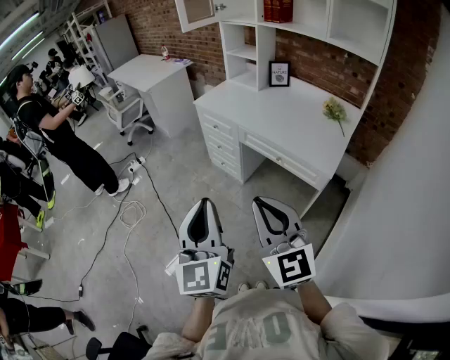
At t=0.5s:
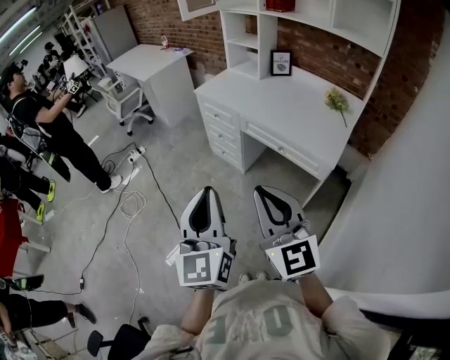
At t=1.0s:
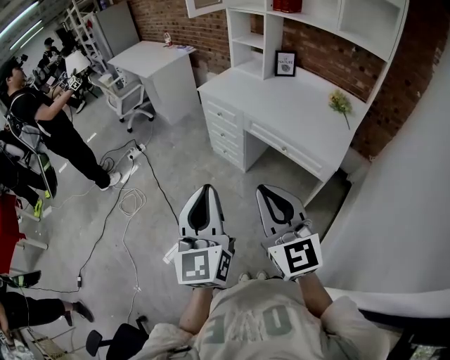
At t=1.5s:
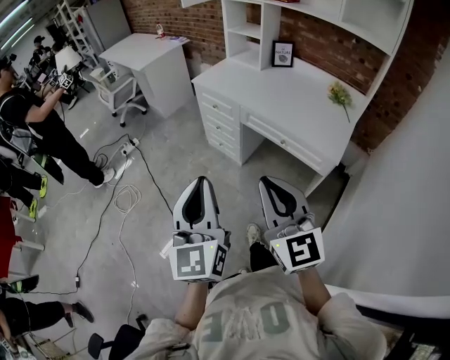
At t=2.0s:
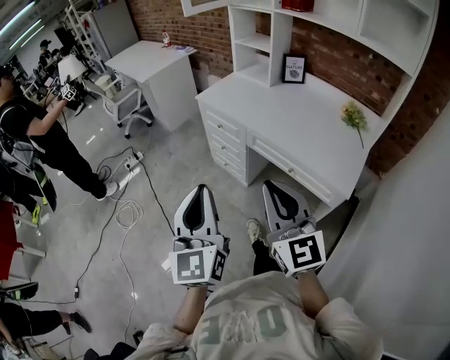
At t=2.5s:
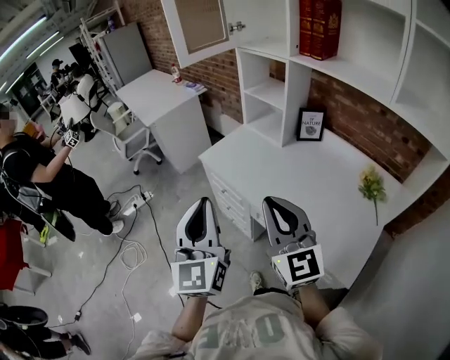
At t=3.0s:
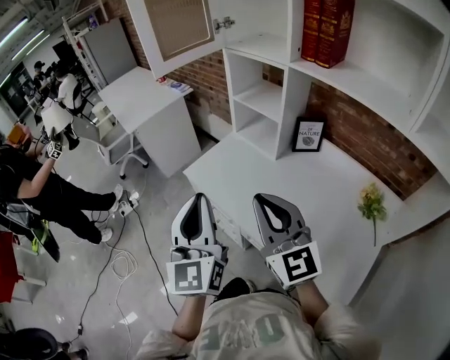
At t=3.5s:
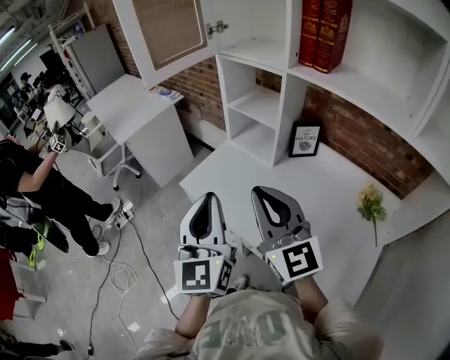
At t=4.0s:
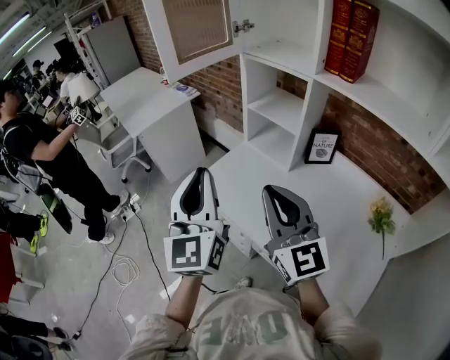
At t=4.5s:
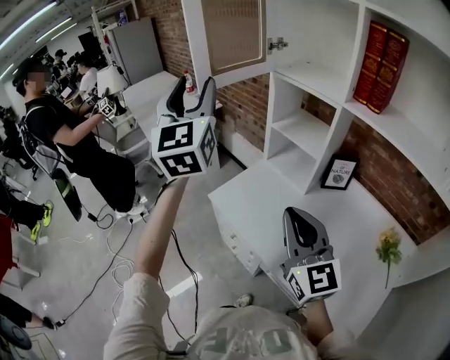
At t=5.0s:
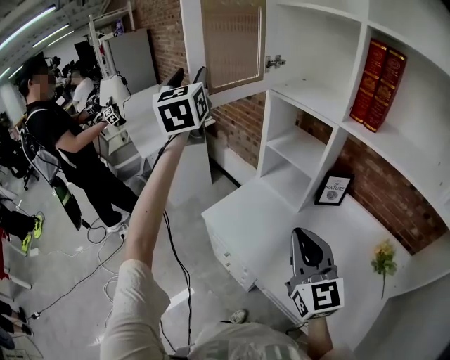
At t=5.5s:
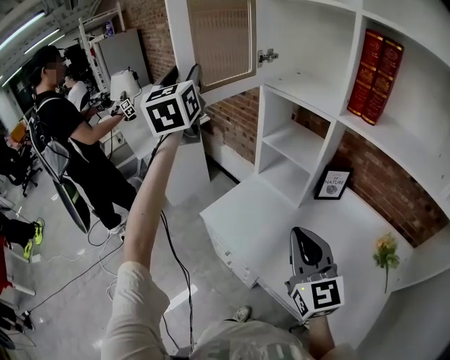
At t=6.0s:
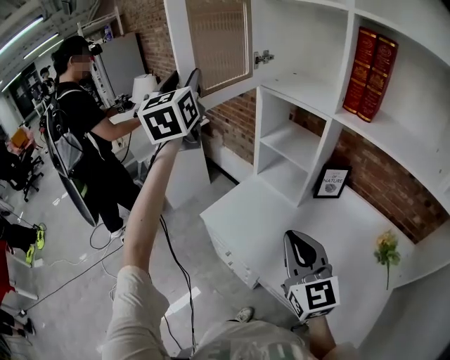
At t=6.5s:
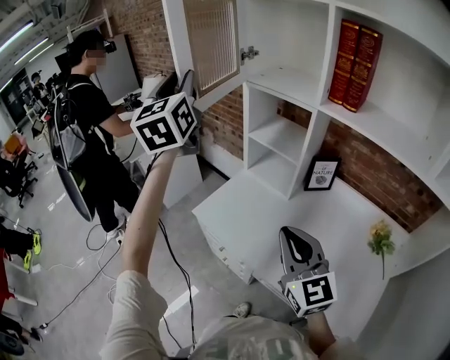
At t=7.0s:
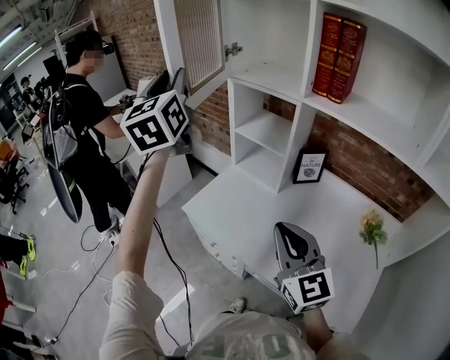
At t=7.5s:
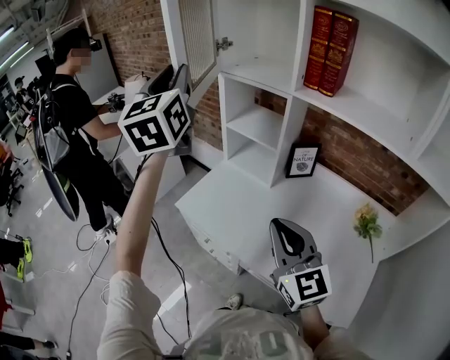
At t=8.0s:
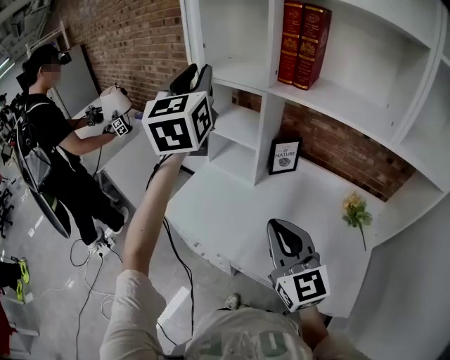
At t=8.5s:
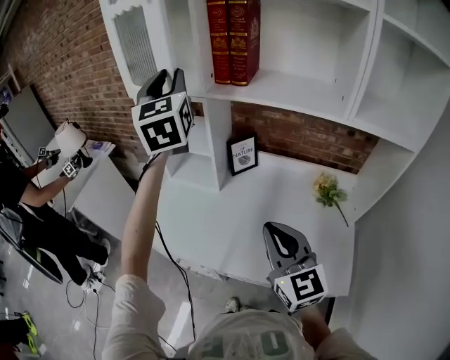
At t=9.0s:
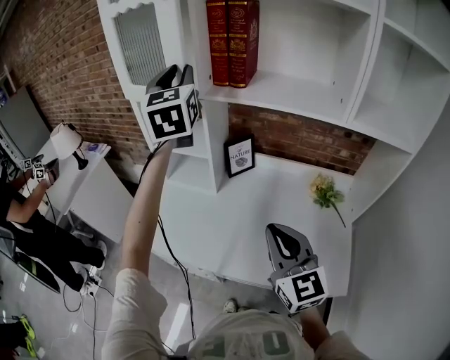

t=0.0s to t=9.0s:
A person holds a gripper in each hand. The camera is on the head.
t=0.0s to t=2.0s: The two grippers go approximately 15 cm forward.
t=2.0s to t=4.5s: Both grippers are carried forward, some 60 cm. The left gripper opens.
t=4.5s to t=7.0s: The left gripper travels forward by some 5 cm.
t=7.0s to t=9.0s: The left gripper heads to the right, covering some 25 cm, and swivels about 20 degrees, while the right gripper heads to the right, covering approximately 10 cm, and swivels approximately 20 degrees.

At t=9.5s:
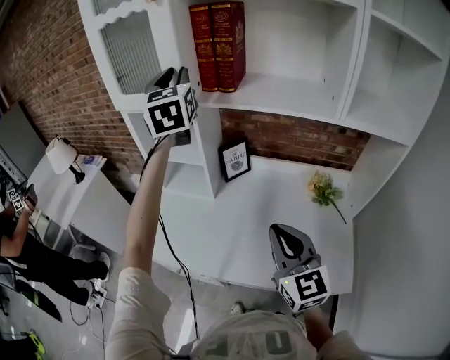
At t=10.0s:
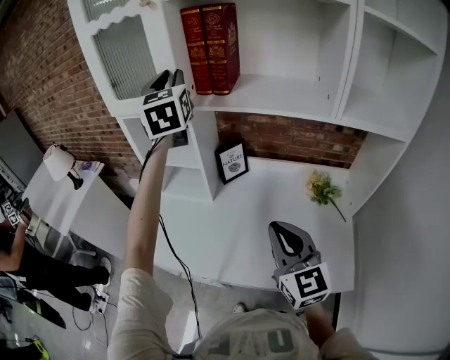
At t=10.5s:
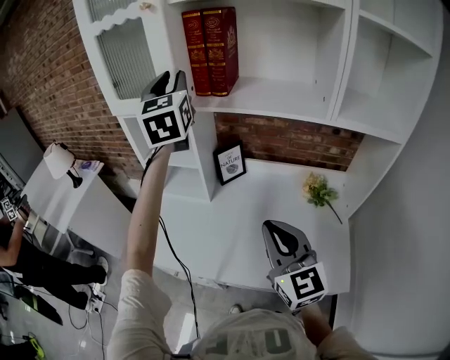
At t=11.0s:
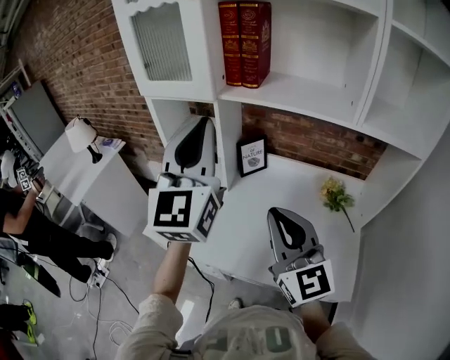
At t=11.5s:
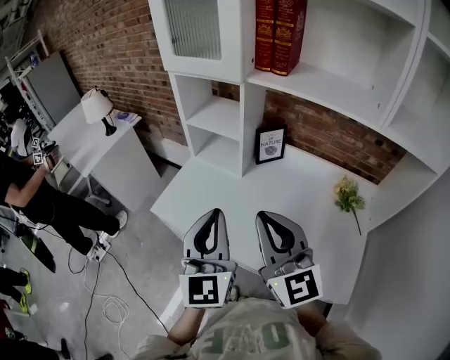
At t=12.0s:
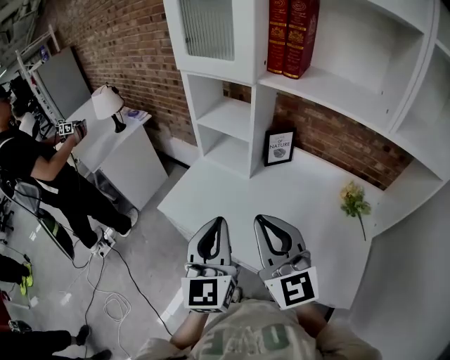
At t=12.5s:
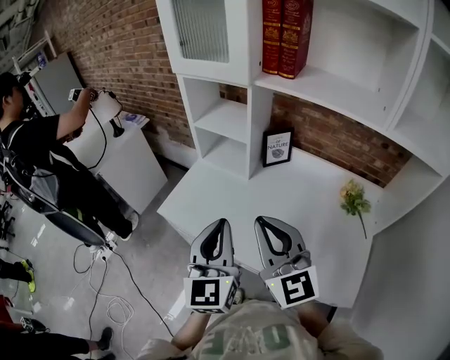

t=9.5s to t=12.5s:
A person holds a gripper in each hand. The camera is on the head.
t=9.5s to t=11.0s: The right gripper is displaced upward by roughly 5 cm. Meanwhile the left gripper travels backward by roughly 20 cm, and closes up.
t=11.0s to t=12.5s: The left gripper moves downward and backward, approximately 25 cm, and swivels some 30 degrees. The right gripper is displaced to the left by about 10 cm.

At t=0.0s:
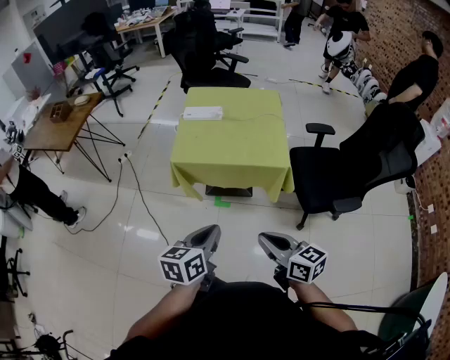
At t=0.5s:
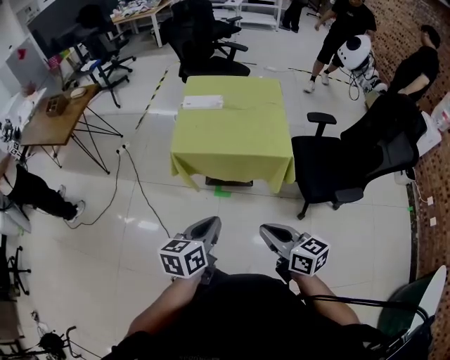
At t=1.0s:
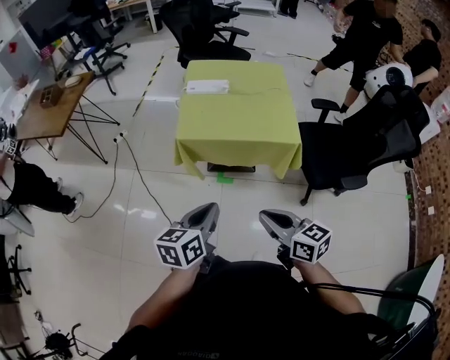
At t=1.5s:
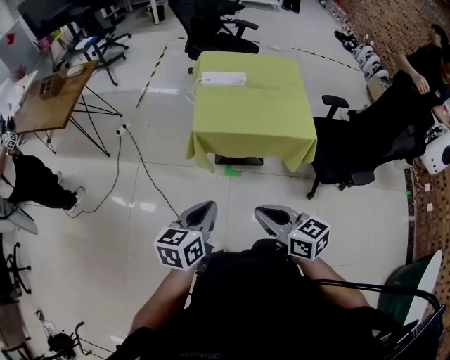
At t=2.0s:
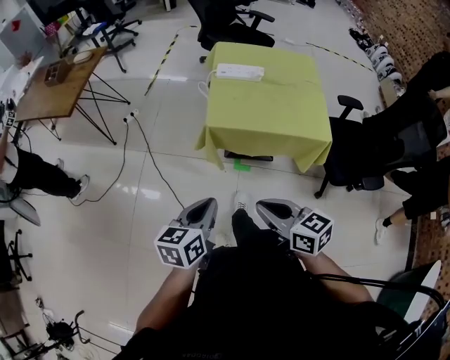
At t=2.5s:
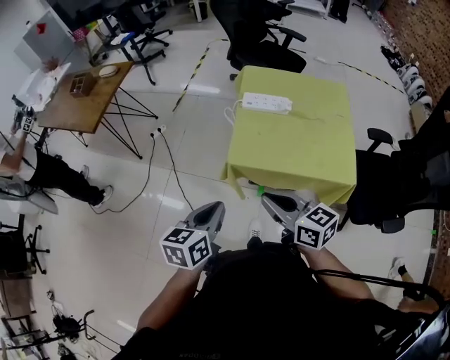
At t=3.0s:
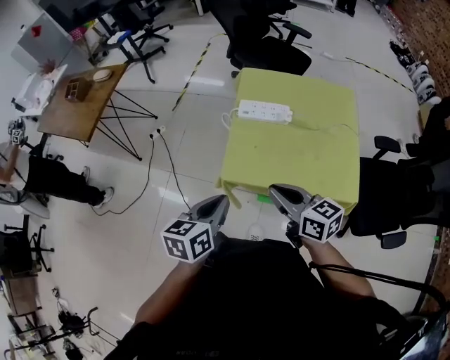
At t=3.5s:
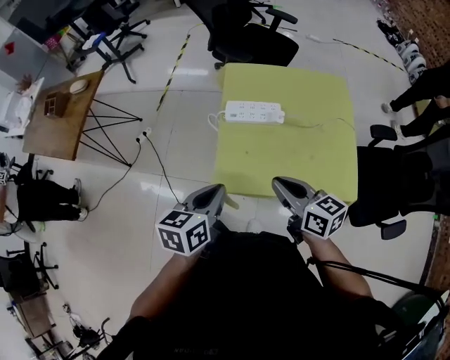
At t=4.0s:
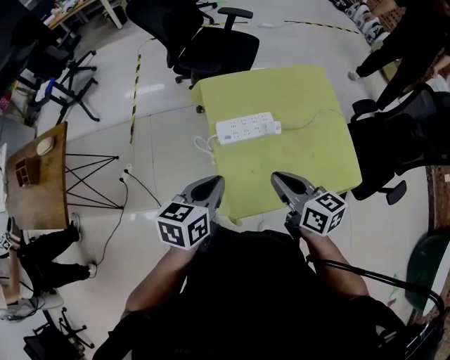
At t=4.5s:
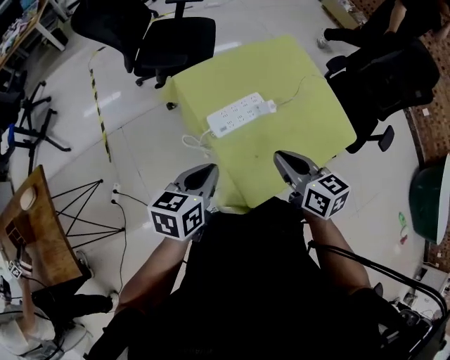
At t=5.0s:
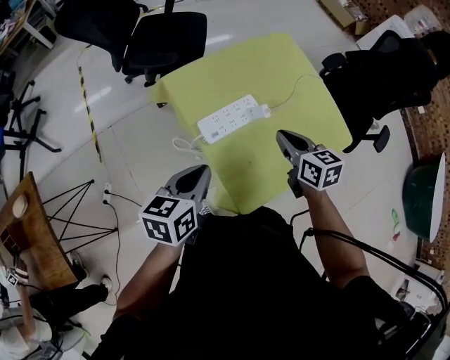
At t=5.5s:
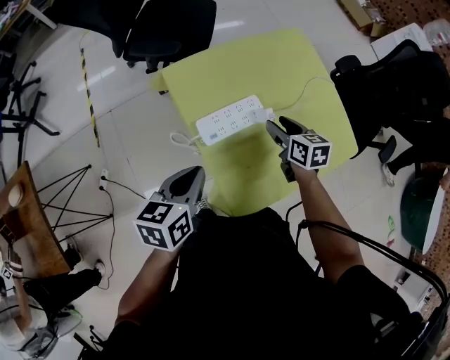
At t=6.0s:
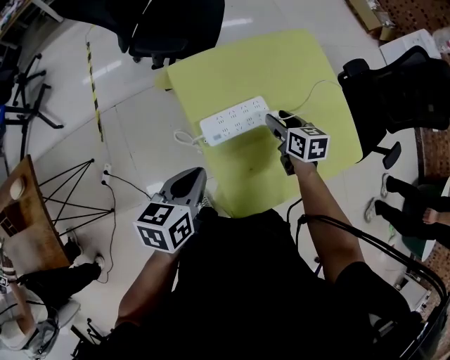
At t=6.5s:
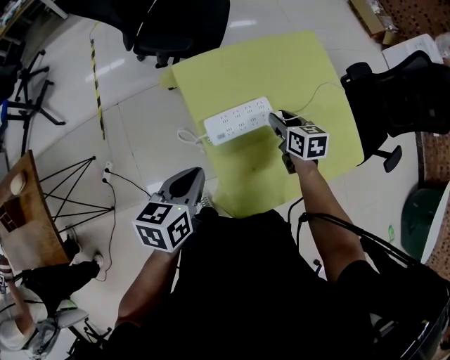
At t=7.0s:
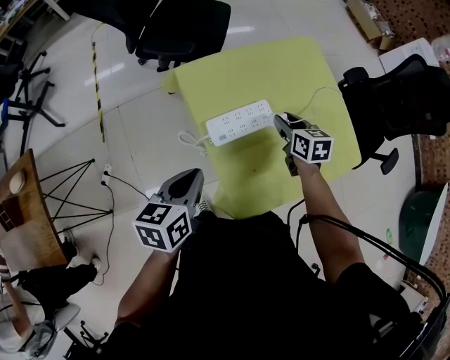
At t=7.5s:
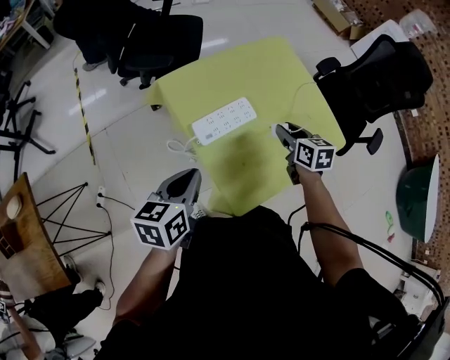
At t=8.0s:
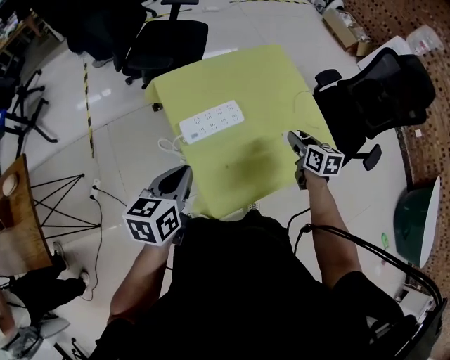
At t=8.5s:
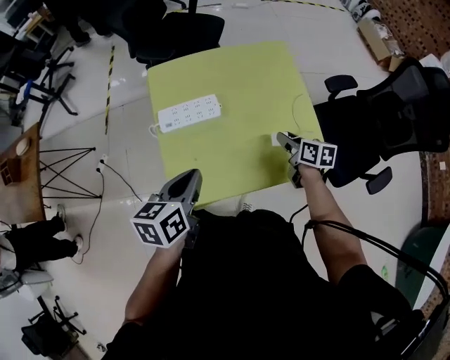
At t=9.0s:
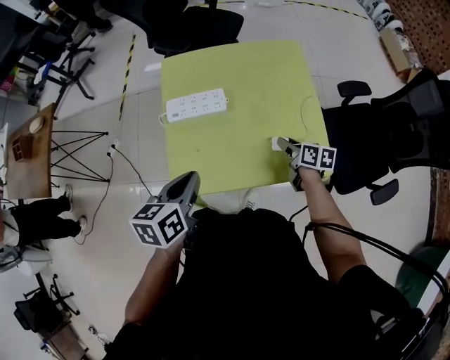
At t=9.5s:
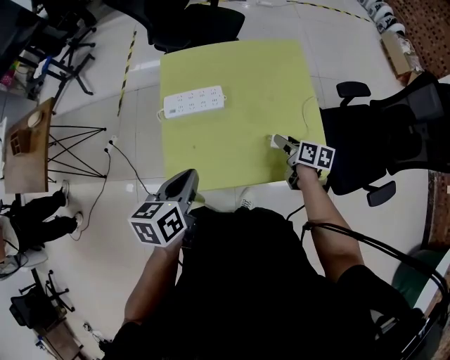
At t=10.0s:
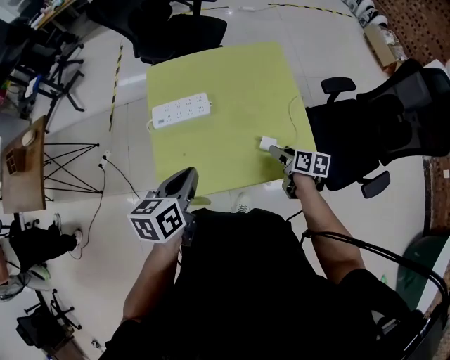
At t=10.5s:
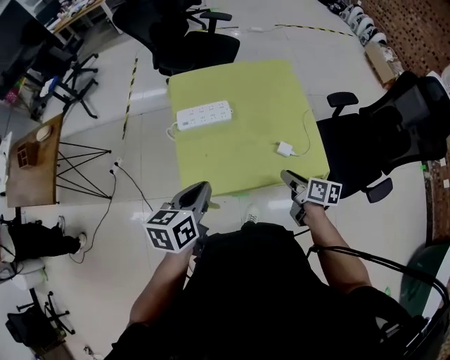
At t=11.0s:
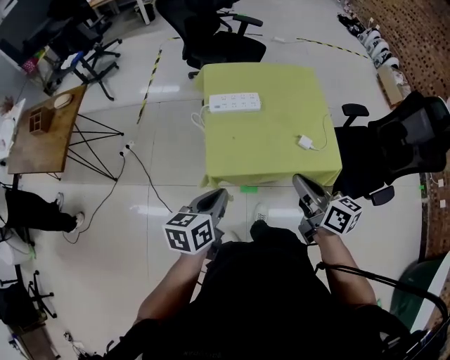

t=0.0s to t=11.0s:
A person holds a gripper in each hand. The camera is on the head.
t=0.0s to t=2.0s: The left gripper goes roughly 20 cm to the left. Meanwhile the right gripper shifts some 20 cm to the left and forward.
t=2.0s to t=3.5s: Both grippers move forward, about 30 cm.
t=3.5s to t=5.5s: The left gripper moves about 25 cm, and rotates approximately 30 degrees. Meanwhile the right gripper changes place by approximately 25 cm, turns by about 50 degrees, and opens.
t=5.5s to t=7.5s: The right gripper moves roughly 5 cm.
t=7.5s to t=9.0s: The right gripper moves some 20 cm, and swivels roughly 30 degrees; the left gripper shifts by about 20 cm, and turns by roughly 30 degrees.
t=9.0s to t=11.0s: The right gripper shifts approximately 35 cm upward, backward and to the left, swivels about 30 degrees, and closes its fingers. Meanwhile the left gripper moves backward and to the left, roughly 15 cm.

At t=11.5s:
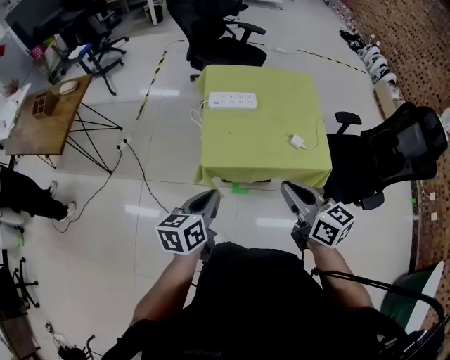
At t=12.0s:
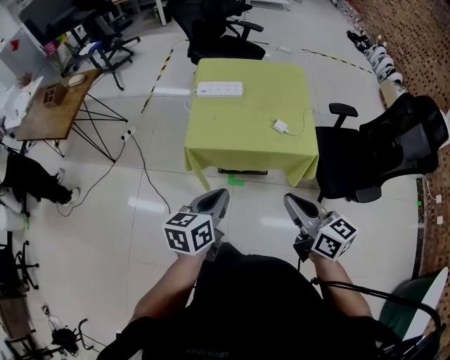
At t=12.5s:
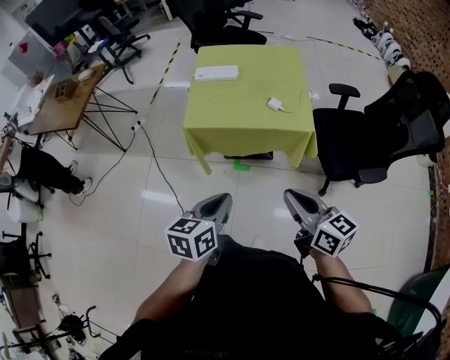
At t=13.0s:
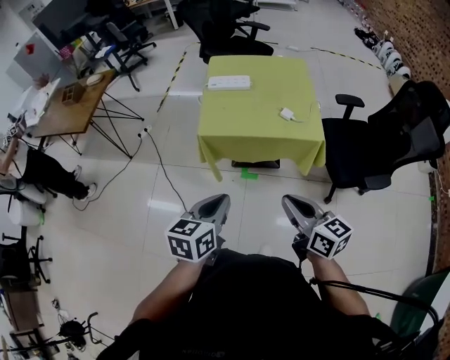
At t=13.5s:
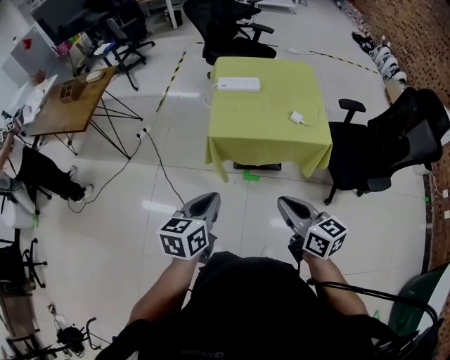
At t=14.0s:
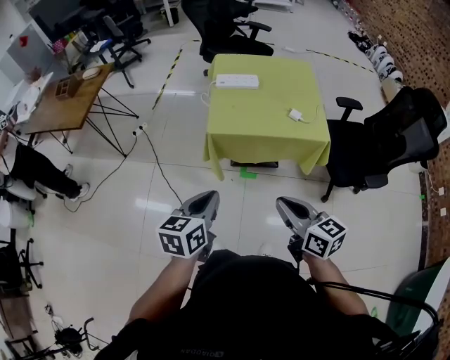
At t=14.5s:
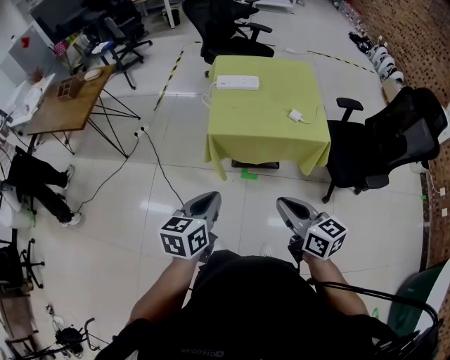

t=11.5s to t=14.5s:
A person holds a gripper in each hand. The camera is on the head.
t=11.5s to t=13.0s: Both grippers move backward and to the right, some 20 cm.
t=13.0s to t=14.5s: Both grippers move to the left, roughly 10 cm.
